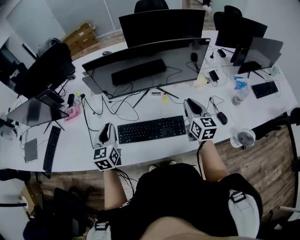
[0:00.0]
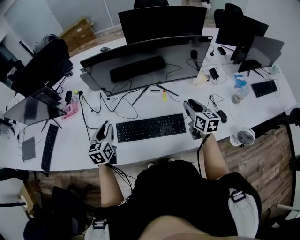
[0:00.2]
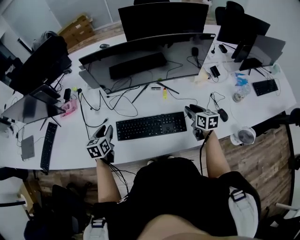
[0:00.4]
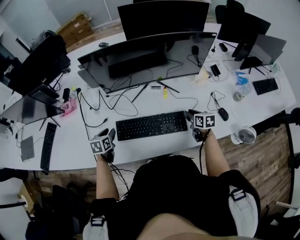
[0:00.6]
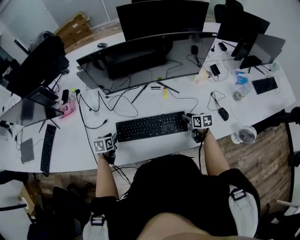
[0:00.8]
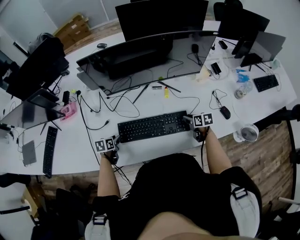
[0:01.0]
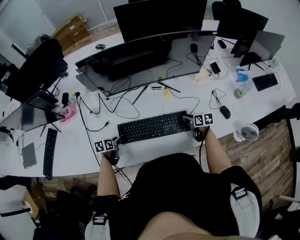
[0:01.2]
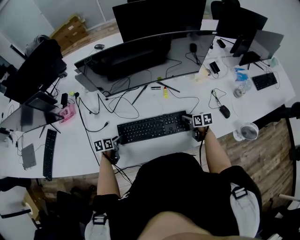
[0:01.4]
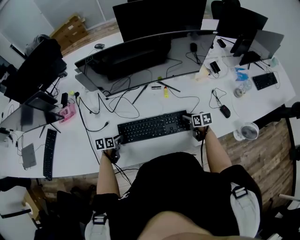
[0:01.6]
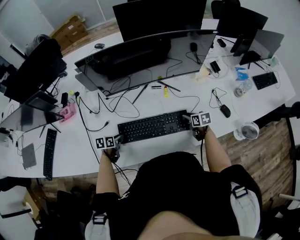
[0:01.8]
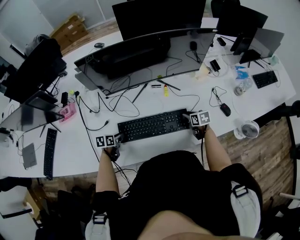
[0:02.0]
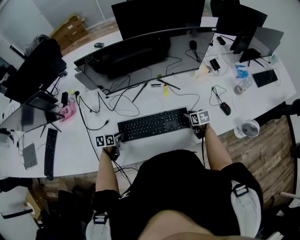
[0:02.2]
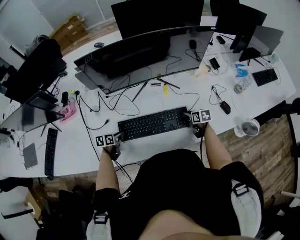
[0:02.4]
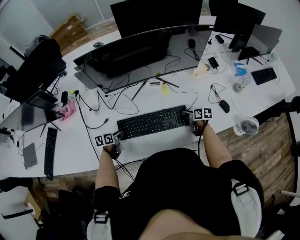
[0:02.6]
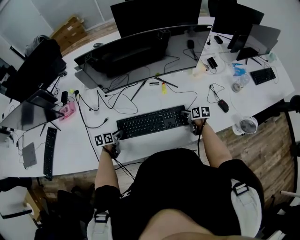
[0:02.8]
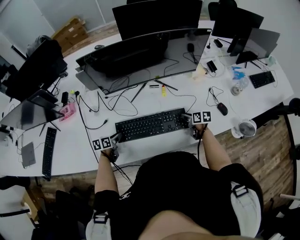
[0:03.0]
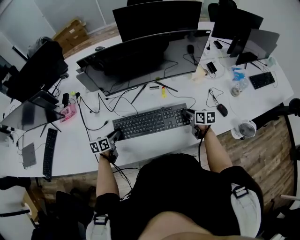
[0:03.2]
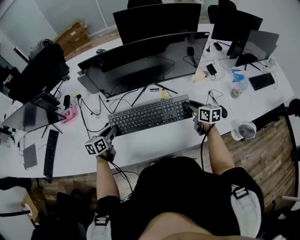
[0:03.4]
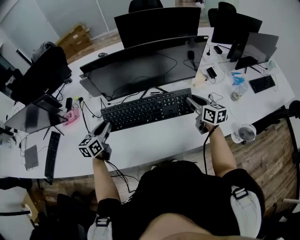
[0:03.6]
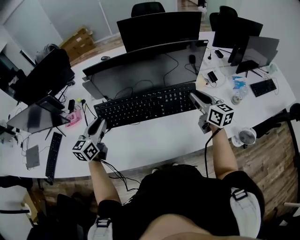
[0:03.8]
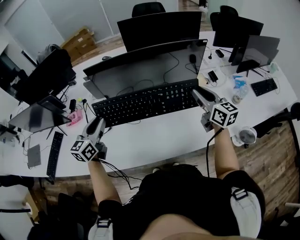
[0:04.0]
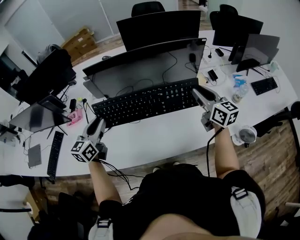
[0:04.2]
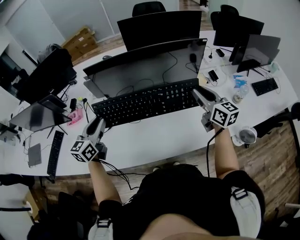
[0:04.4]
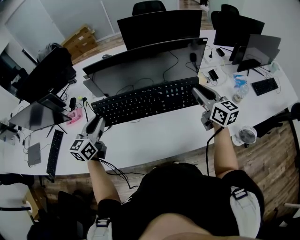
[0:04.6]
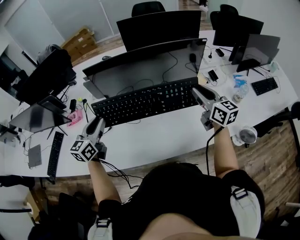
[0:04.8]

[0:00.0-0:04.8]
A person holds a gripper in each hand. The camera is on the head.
0:00.0 to 0:01.6: Both grippers travel together downward, approximately 30 cm. The left gripper tips its fingers downward by roughly 30 degrees, and opens its fingers; the right gripper points its fingers about 40 degrees further downward, and opens its fingers.
0:01.6 to 0:03.2: The grippers both shift upward by some 5 cm.
0:03.2 to 0:04.8: The two grippers go about 30 cm upward. The left gripper turns by approximately 40 degrees. Meanwhile the right gripper tilts its fingers about 30 degrees upward.

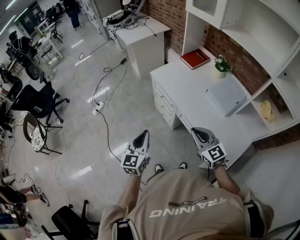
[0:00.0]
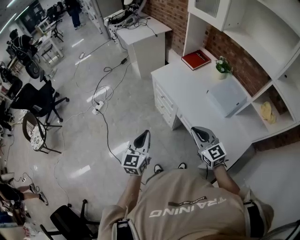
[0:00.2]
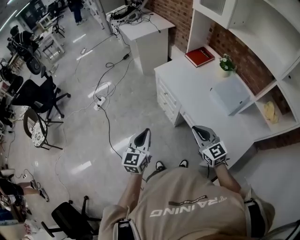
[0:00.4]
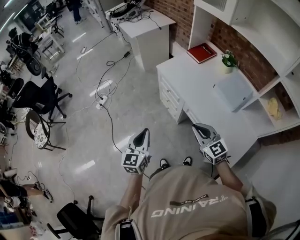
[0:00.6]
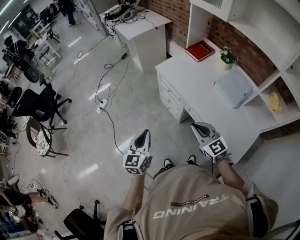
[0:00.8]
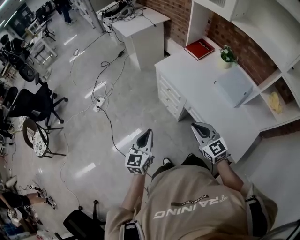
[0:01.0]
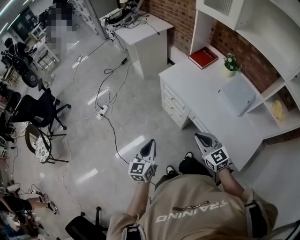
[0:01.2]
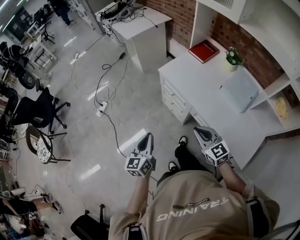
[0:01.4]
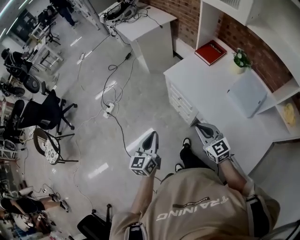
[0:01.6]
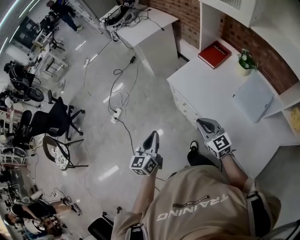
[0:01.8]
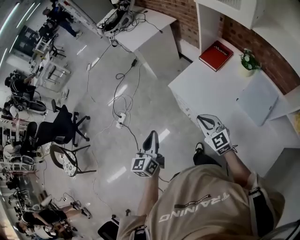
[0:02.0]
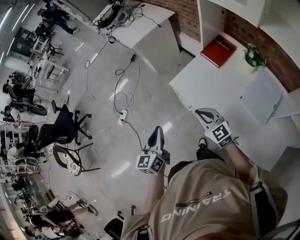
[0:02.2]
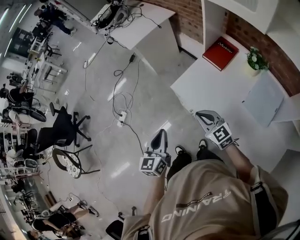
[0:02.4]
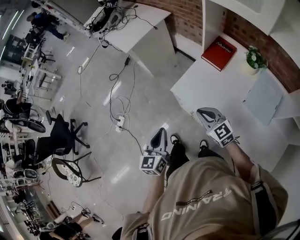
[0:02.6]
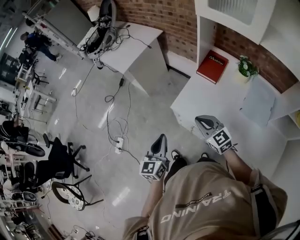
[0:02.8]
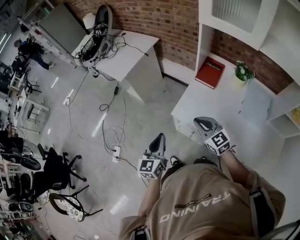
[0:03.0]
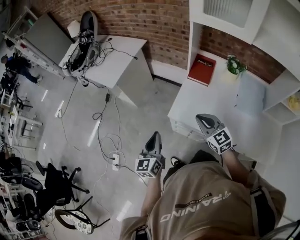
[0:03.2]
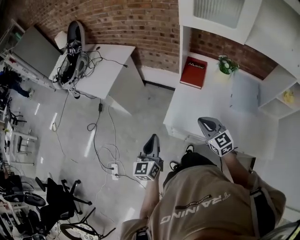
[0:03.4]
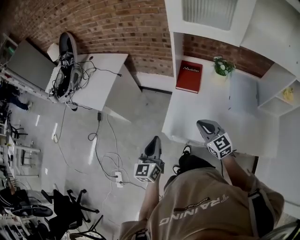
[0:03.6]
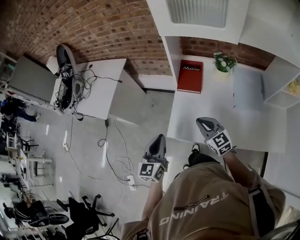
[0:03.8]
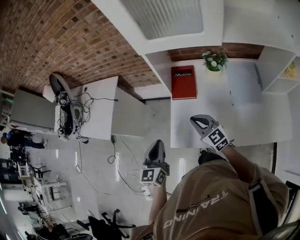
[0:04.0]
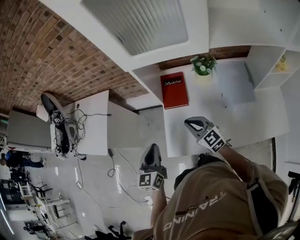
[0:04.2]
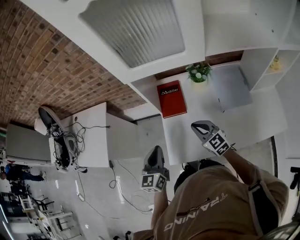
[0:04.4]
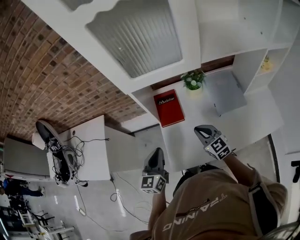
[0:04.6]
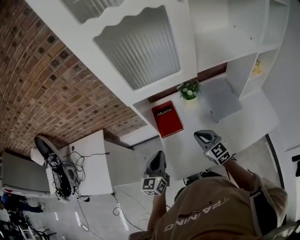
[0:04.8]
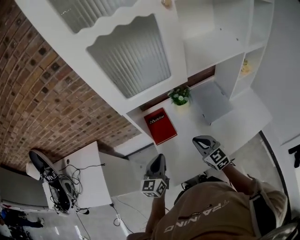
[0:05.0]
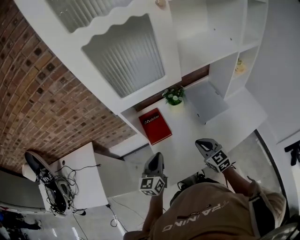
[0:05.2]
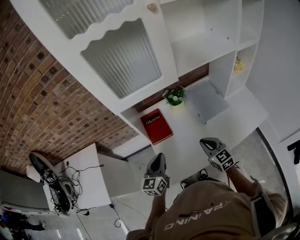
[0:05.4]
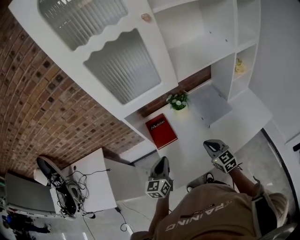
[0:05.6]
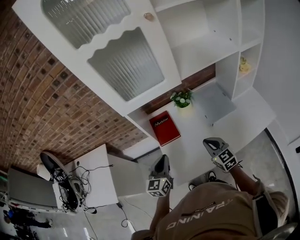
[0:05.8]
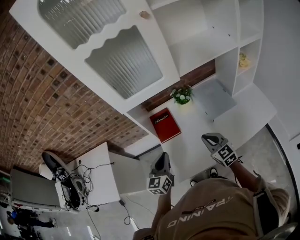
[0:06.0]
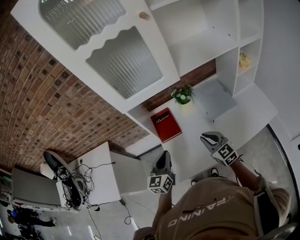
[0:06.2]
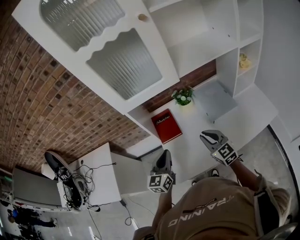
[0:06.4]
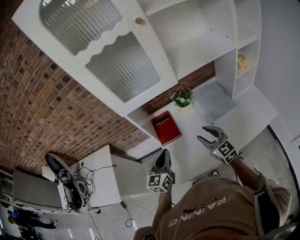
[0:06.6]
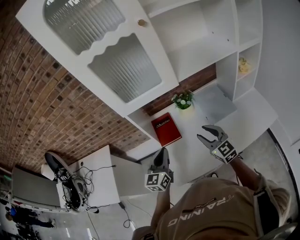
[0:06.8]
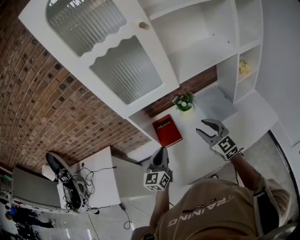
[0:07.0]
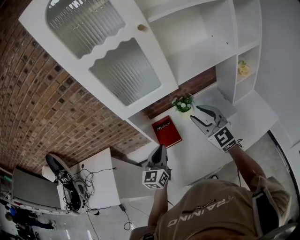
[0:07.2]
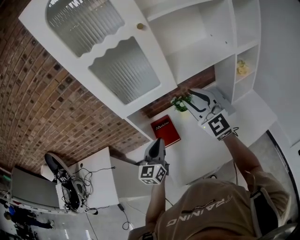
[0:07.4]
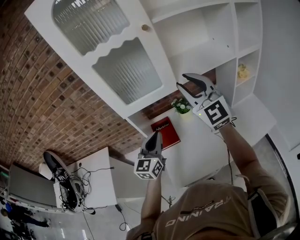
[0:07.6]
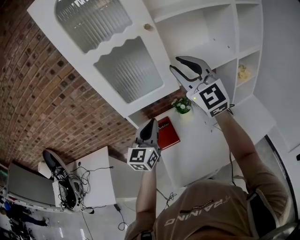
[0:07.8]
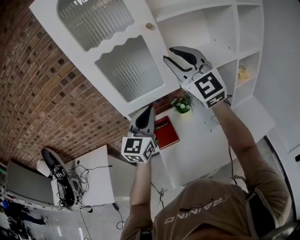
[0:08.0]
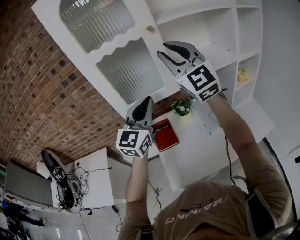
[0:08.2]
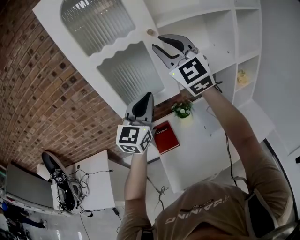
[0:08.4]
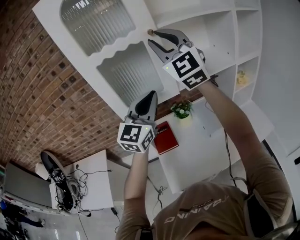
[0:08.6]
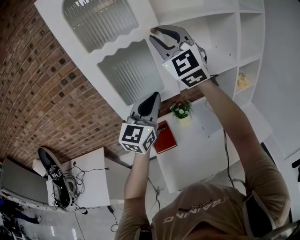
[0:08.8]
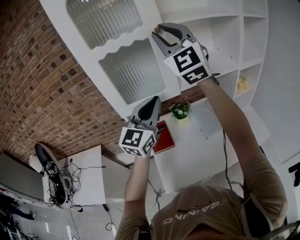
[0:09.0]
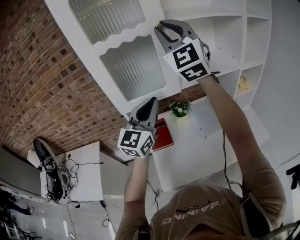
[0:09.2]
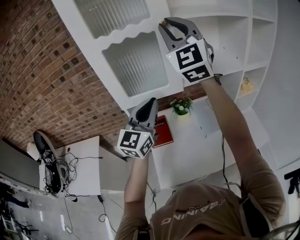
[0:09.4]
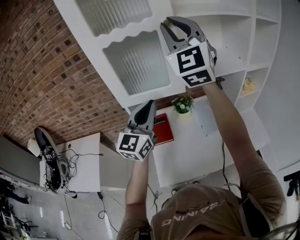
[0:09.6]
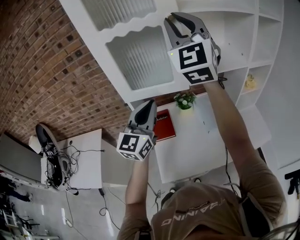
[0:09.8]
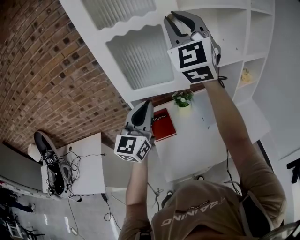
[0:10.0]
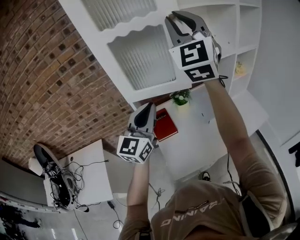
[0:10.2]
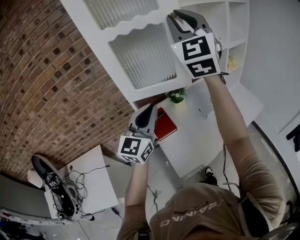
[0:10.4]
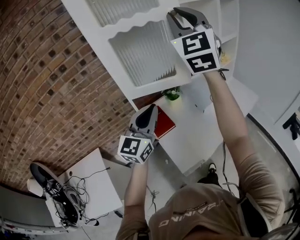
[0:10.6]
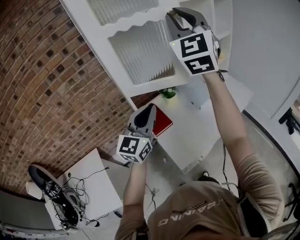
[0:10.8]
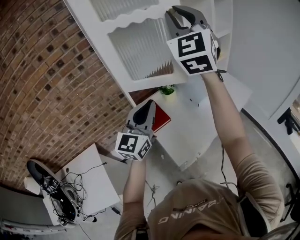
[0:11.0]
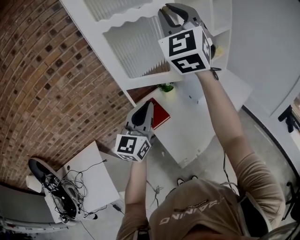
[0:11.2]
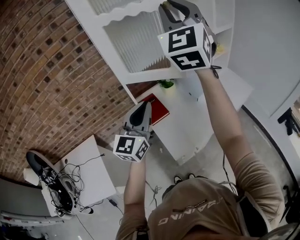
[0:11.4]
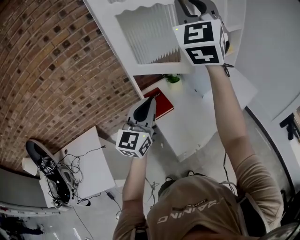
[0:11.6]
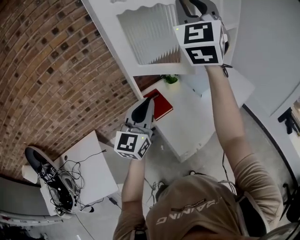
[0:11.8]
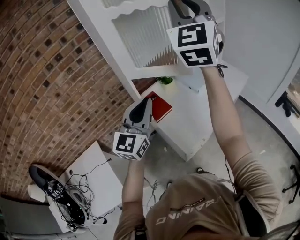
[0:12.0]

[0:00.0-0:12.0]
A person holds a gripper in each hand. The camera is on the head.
0:00.0 to 0:01.6: Both grippers travel together forward and to the left, approximately 15 cm.
0:01.6 to 0:03.0: The two grippers go approximately 30 cm forward. The left gripper turns by about 20 degrees.
0:03.0 to 0:04.4: The left gripper shifts by some 30 cm, and changes its angle by about 30 degrees, while the right gripper moves approximately 25 cm, and swivels roughly 30 degrees.
0:04.4 to 0:06.0: The left gripper moves approximately 5 cm. Meanwhile the right gripper heads to the right, covering roughly 10 cm, and turns by roughly 20 degrees.
0:06.0 to 0:07.6: The right gripper travels upward by some 35 cm, tips its fingers upward by approximately 30 degrees, and opens up, while the left gripper travels upward and forward by about 15 cm.
0:07.6 to 0:09.0: The grippers both shift upward by roughly 20 cm.
0:09.0 to 0:10.4: The left gripper shifts roughly 15 cm backward and to the left, while the right gripper heads backward, covering approximately 10 cm, and changes its angle by about 20 degrees.
0:10.4 to 0:12.0: The two grippers go some 10 cm backward.

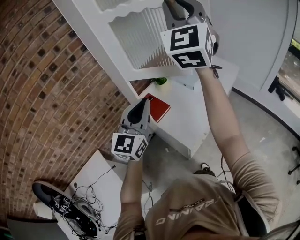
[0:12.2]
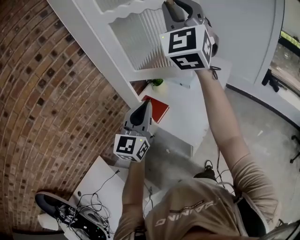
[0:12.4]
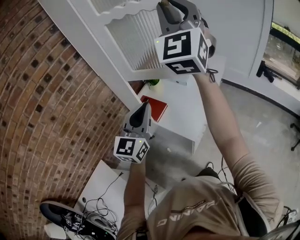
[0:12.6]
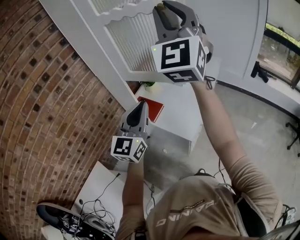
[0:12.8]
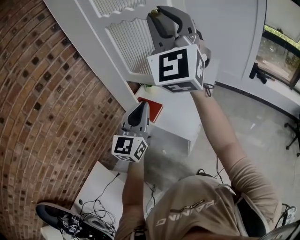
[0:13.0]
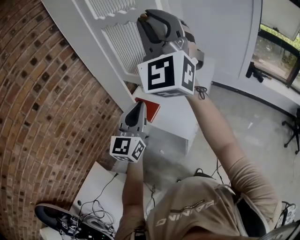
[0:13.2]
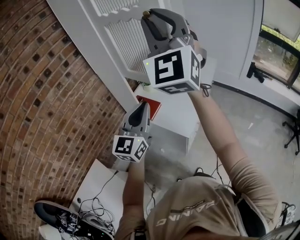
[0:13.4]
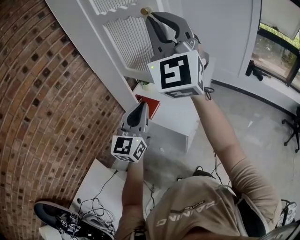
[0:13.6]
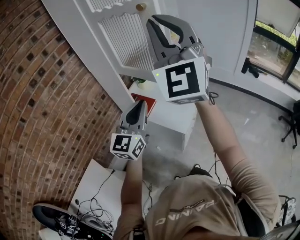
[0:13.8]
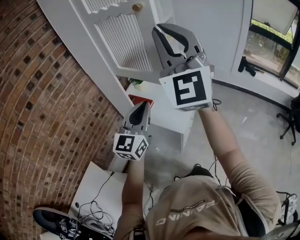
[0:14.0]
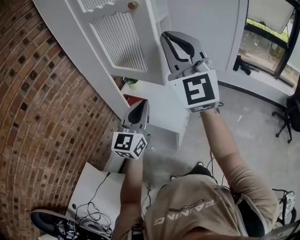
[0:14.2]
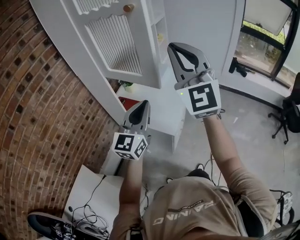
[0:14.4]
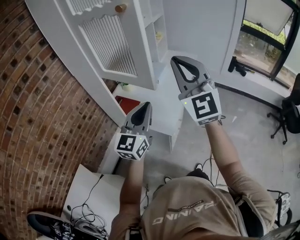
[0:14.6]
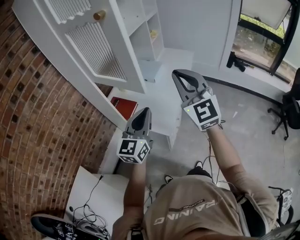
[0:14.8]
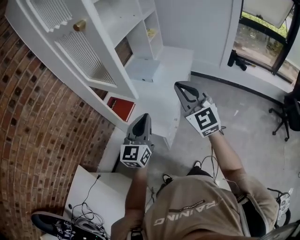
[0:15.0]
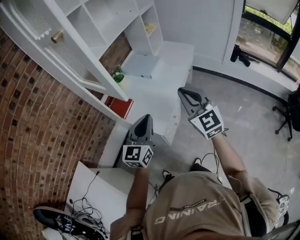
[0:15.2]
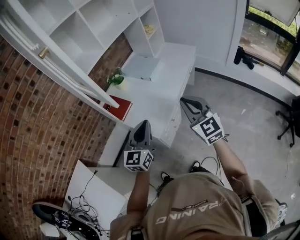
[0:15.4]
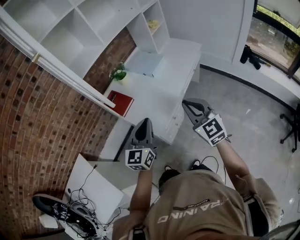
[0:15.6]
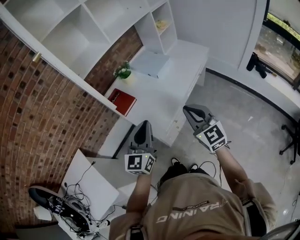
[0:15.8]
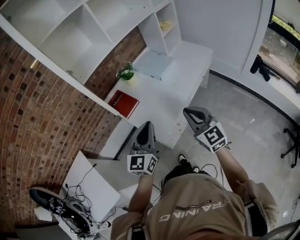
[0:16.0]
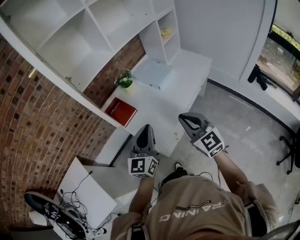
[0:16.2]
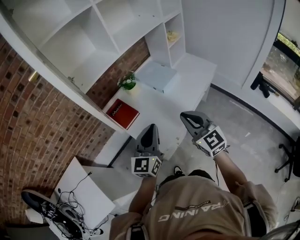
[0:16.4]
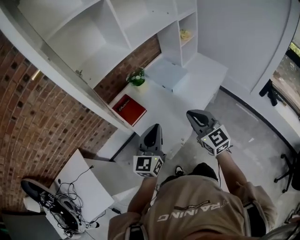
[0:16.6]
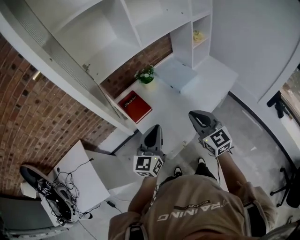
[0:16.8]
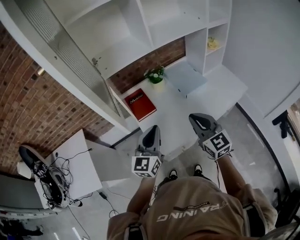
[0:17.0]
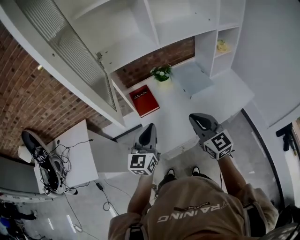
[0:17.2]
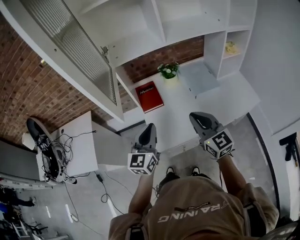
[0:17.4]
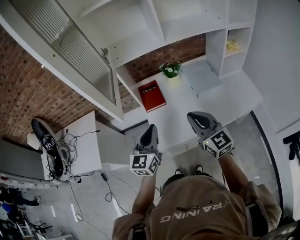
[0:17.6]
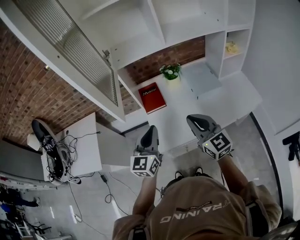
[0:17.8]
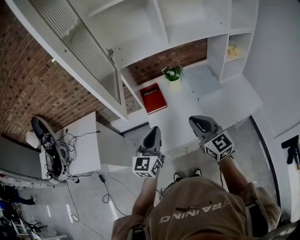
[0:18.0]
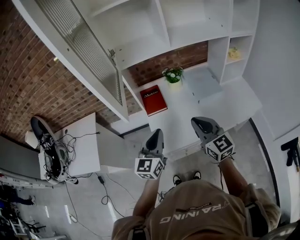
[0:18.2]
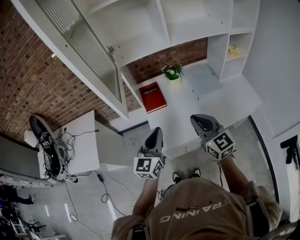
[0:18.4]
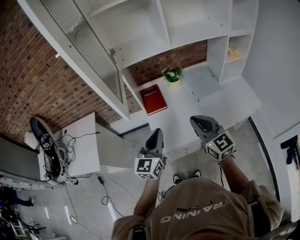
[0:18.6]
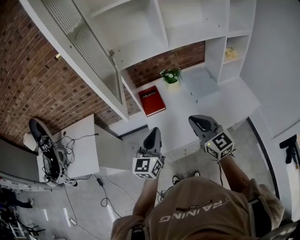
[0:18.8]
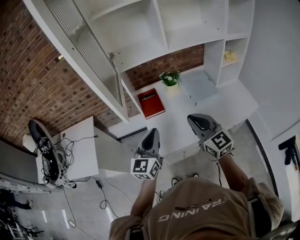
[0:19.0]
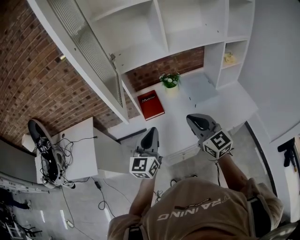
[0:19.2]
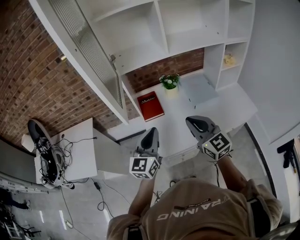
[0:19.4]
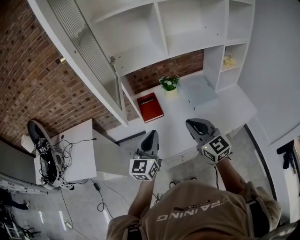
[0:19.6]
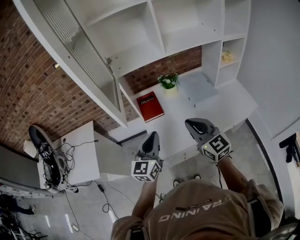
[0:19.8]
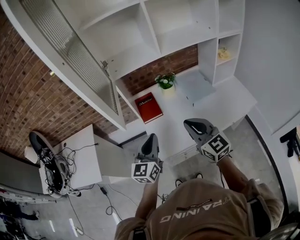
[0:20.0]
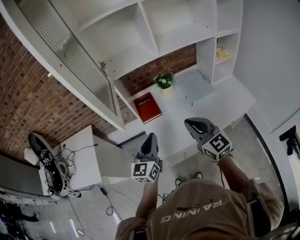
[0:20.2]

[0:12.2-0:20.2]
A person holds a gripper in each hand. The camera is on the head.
0:12.2 to 0:13.8: The left gripper is displaced backward by approximately 10 cm. Meanwhile the right gripper is displaced backward by roughly 20 cm.
0:13.8 to 0:15.4: The left gripper heads to the right and downward, covering approximately 25 cm; the right gripper goes approximately 40 cm downward and to the right, and angles its fingers downward, by about 30 degrees.
0:15.4 to 0:17.0: The right gripper shifts by about 20 cm, and turns by about 30 degrees. Meanwhile the left gripper shifts by approximately 15 cm, and rotates roughly 30 degrees.
0:17.0 to 0:20.2: The grippers make only small movements.
